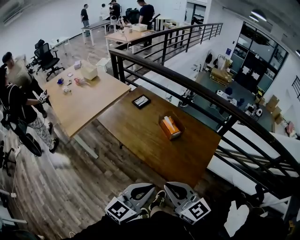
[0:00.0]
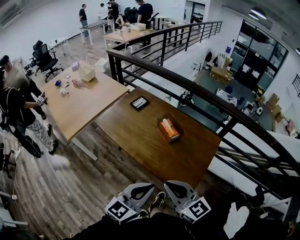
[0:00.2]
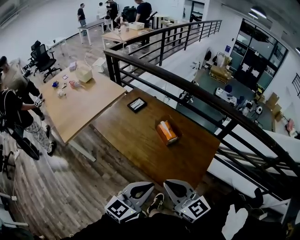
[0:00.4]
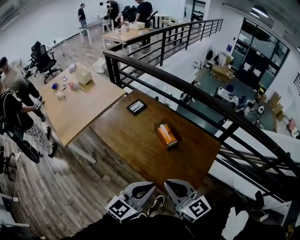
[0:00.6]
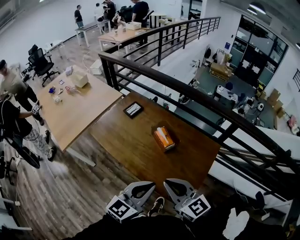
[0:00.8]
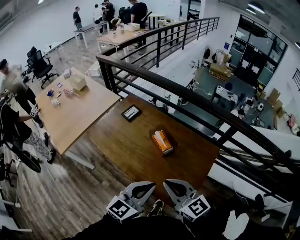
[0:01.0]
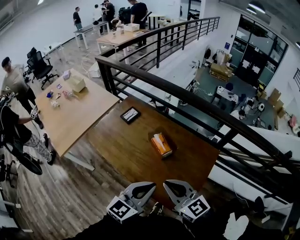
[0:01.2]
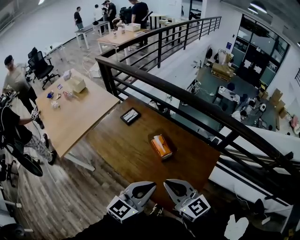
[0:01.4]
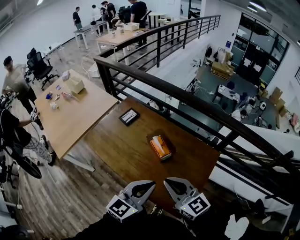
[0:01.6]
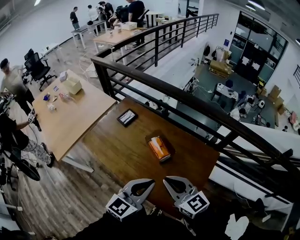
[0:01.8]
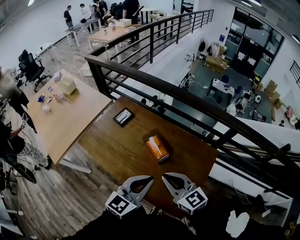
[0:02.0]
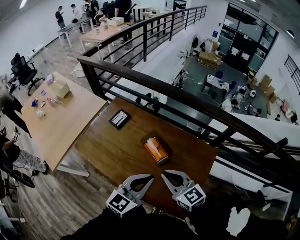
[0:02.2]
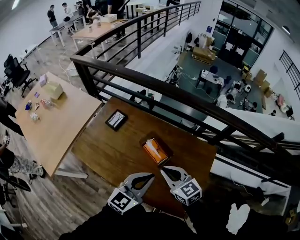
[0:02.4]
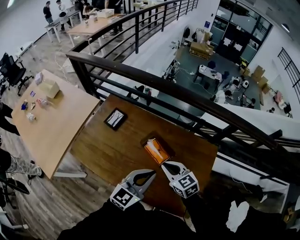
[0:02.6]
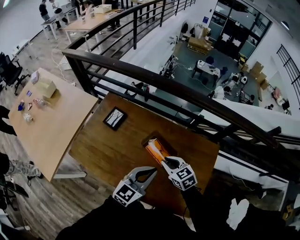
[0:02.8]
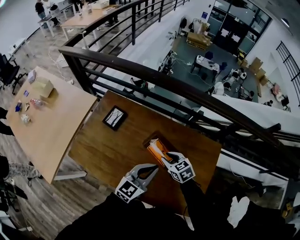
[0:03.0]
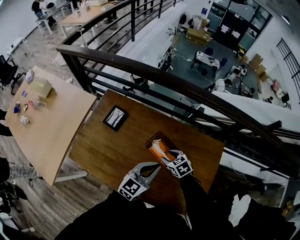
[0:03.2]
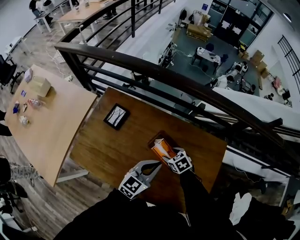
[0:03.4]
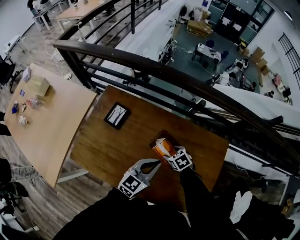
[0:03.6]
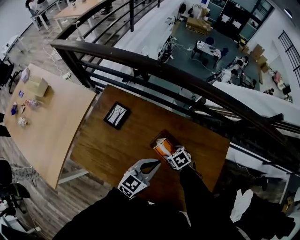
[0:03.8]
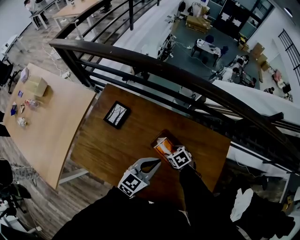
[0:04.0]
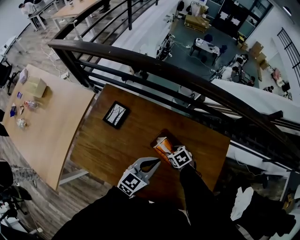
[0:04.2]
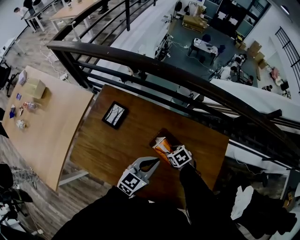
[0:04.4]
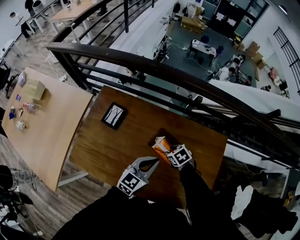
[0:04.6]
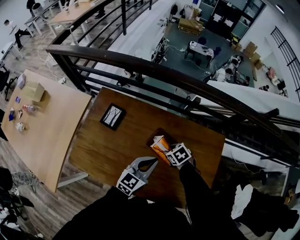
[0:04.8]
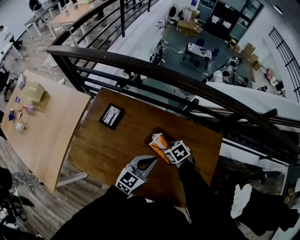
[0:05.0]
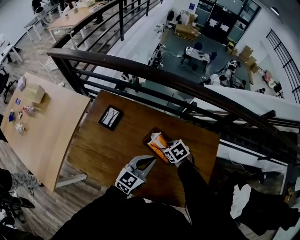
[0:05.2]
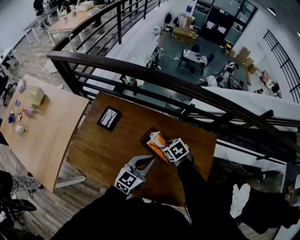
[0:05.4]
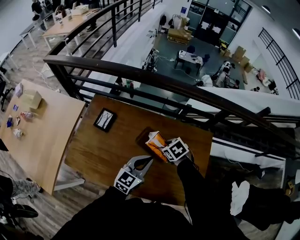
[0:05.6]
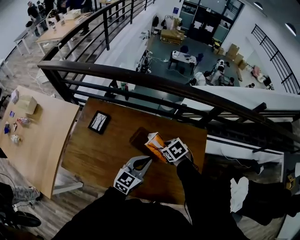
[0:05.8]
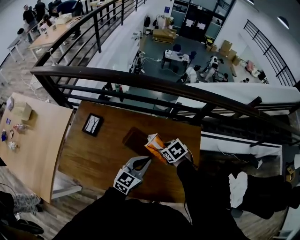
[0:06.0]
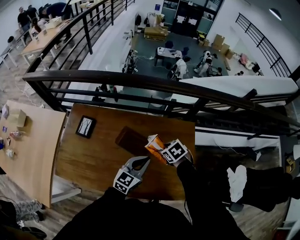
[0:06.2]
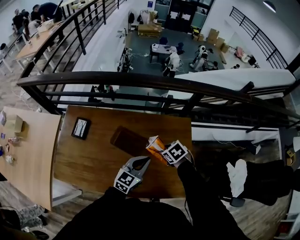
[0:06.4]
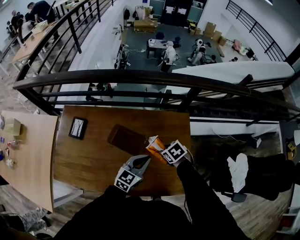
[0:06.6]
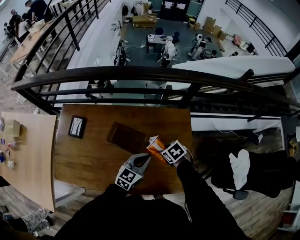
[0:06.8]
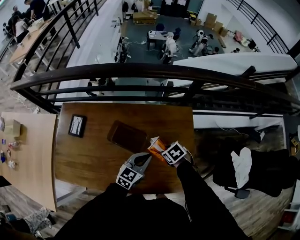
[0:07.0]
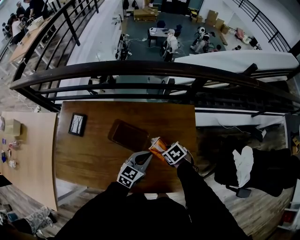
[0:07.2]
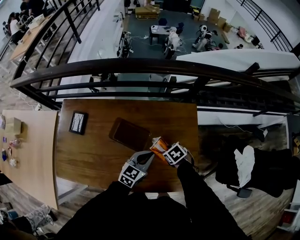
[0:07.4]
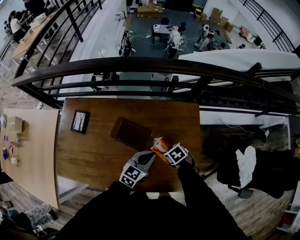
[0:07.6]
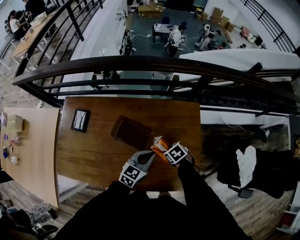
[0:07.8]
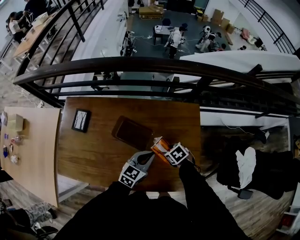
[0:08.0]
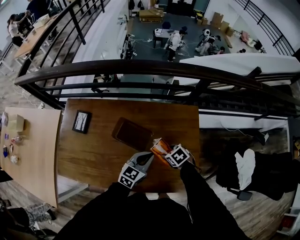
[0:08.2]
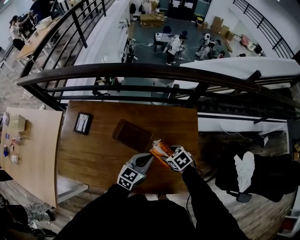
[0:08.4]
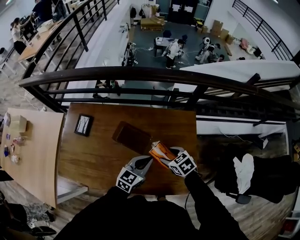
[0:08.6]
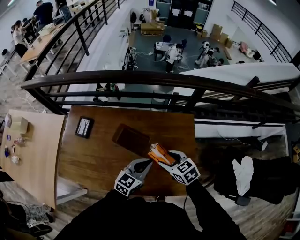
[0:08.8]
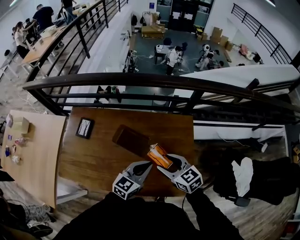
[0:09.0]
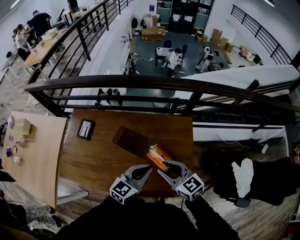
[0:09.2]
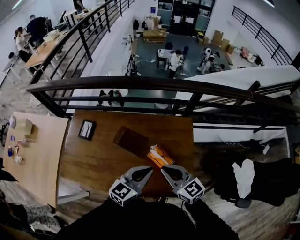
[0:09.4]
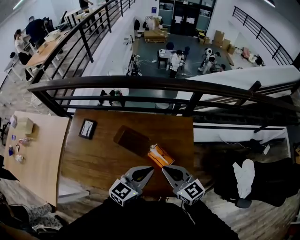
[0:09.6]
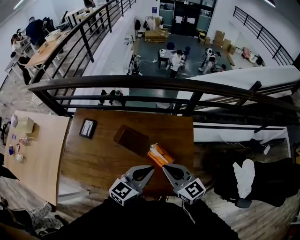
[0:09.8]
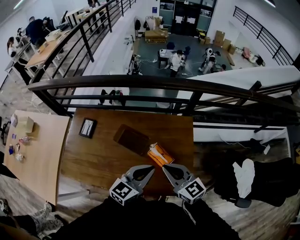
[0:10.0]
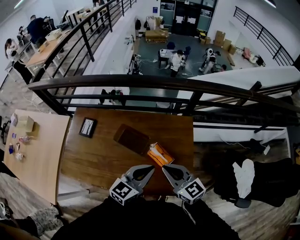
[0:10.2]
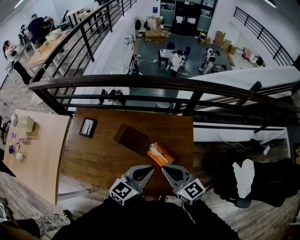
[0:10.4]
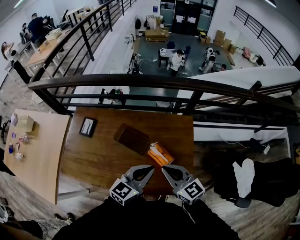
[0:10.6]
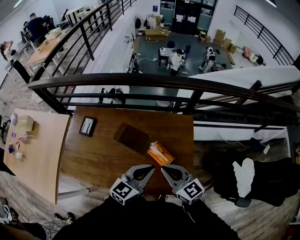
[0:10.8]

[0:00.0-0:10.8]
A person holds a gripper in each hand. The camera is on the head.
0:00.0 to 0:01.6: Both grippers travel together forward, about 25 cm.
0:01.6 to 0:03.0: The right gripper travels downward and forward by about 35 cm, angles its fingers downward, by roughly 40 degrees, and opens up, while the left gripper shifts roughly 25 cm forward and downward.
0:03.0 to 0:04.6: The left gripper moves downward and forward, about 10 cm; the right gripper goes some 10 cm downward, swivels roughly 20 degrees, and opens and closes again.
0:04.6 to 0:06.2: The right gripper is displaced to the right, upward and backward by approximately 20 cm; the left gripper heads to the right and backward, covering approximately 15 cm.
0:06.2 to 0:07.8: The two grippers go some 10 cm downward.
0:07.8 to 0:09.2: The left gripper shifts roughly 15 cm upward and backward. Meanwhile the right gripper shifts approximately 25 cm upward, points its fingers roughly 50 degrees further upward, and opens, then closes once more.
0:09.2 to 0:10.8: The right gripper closes its fingers.

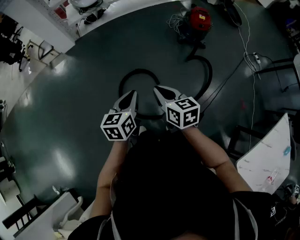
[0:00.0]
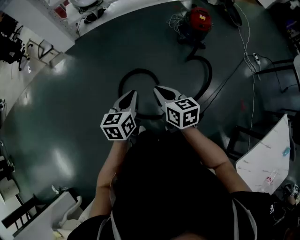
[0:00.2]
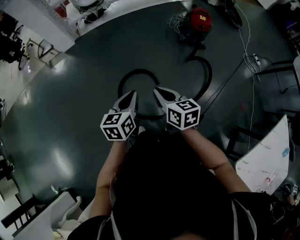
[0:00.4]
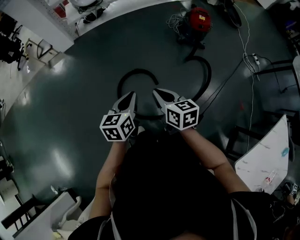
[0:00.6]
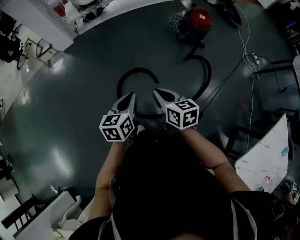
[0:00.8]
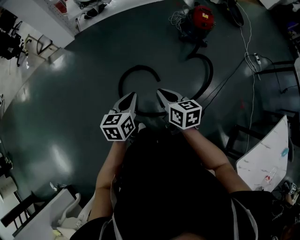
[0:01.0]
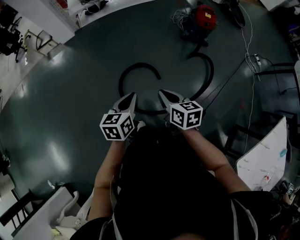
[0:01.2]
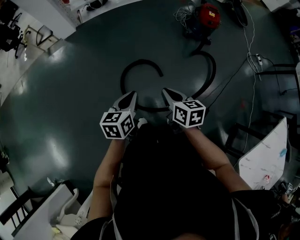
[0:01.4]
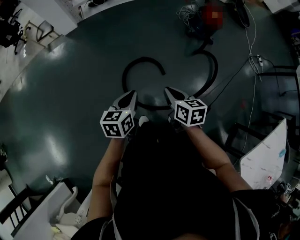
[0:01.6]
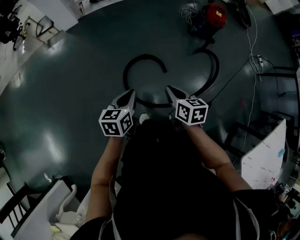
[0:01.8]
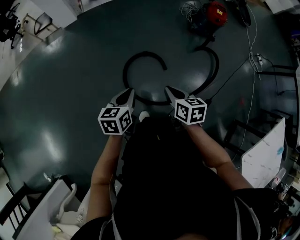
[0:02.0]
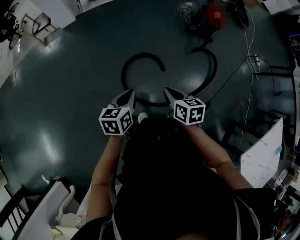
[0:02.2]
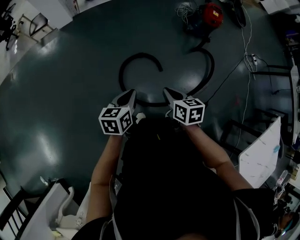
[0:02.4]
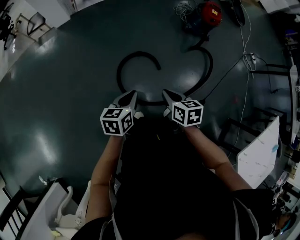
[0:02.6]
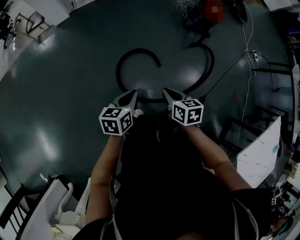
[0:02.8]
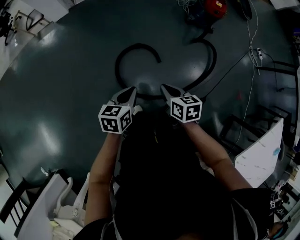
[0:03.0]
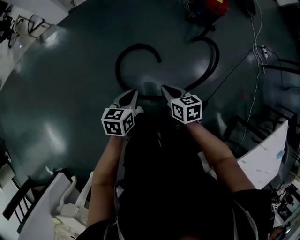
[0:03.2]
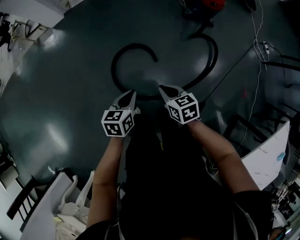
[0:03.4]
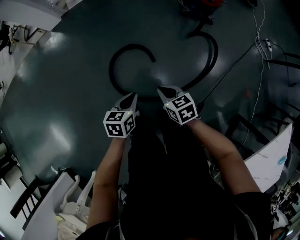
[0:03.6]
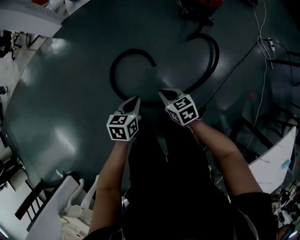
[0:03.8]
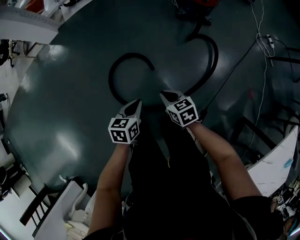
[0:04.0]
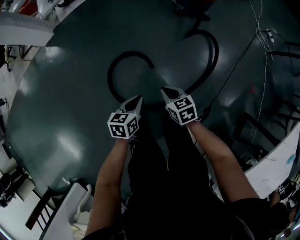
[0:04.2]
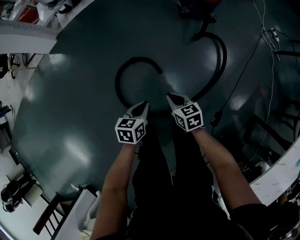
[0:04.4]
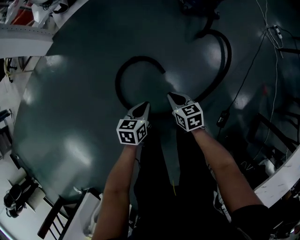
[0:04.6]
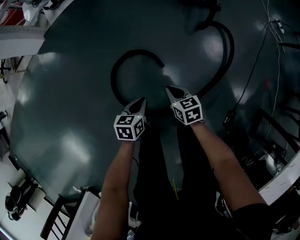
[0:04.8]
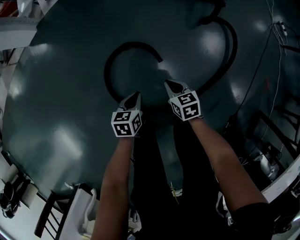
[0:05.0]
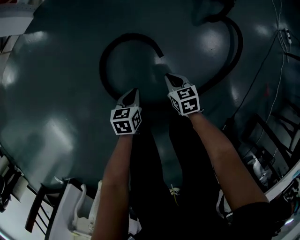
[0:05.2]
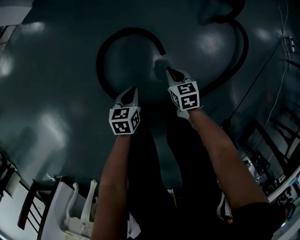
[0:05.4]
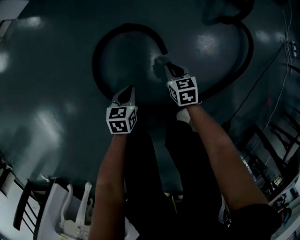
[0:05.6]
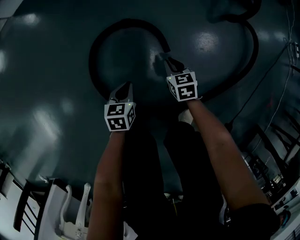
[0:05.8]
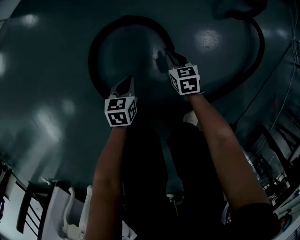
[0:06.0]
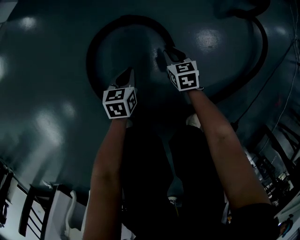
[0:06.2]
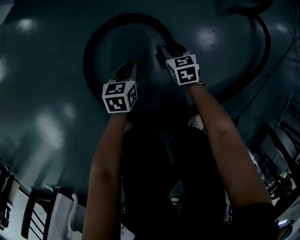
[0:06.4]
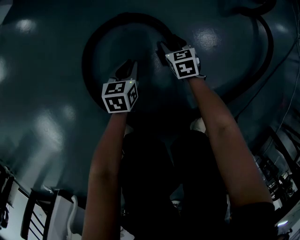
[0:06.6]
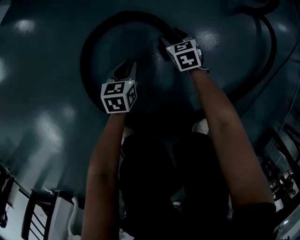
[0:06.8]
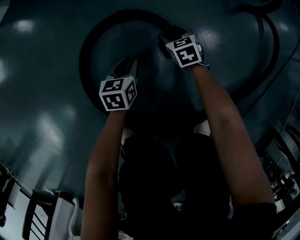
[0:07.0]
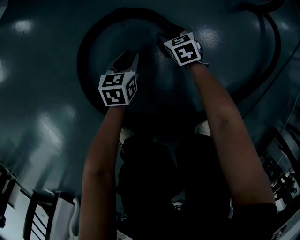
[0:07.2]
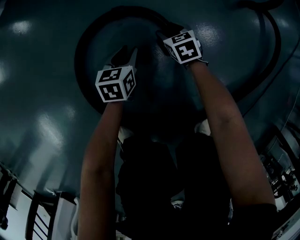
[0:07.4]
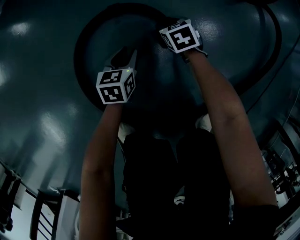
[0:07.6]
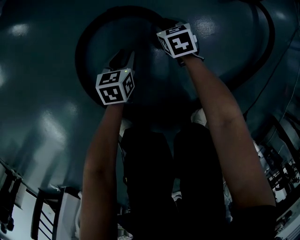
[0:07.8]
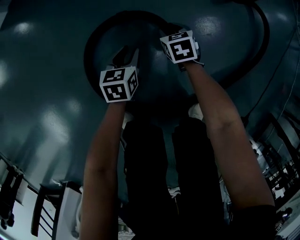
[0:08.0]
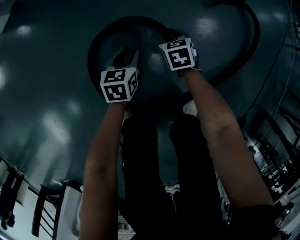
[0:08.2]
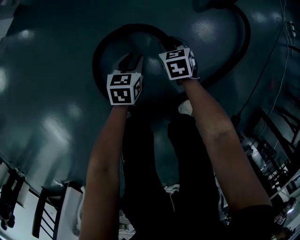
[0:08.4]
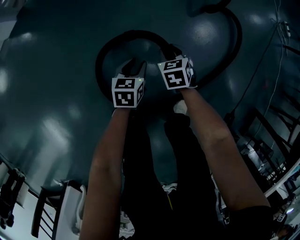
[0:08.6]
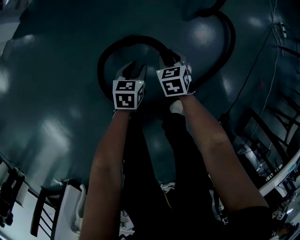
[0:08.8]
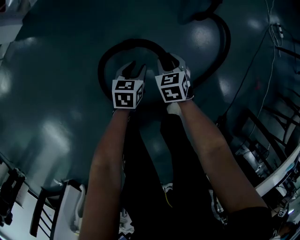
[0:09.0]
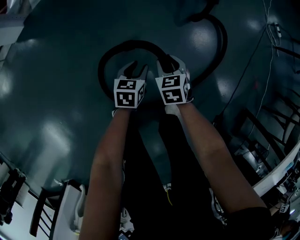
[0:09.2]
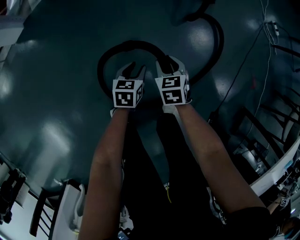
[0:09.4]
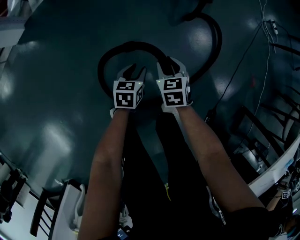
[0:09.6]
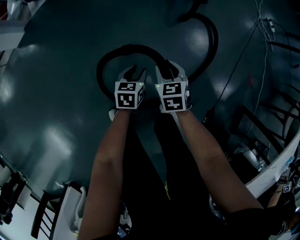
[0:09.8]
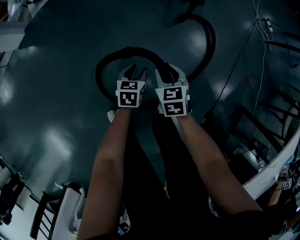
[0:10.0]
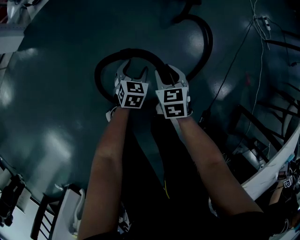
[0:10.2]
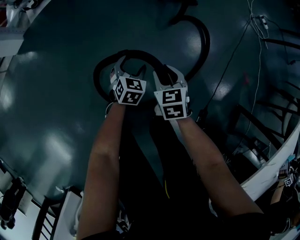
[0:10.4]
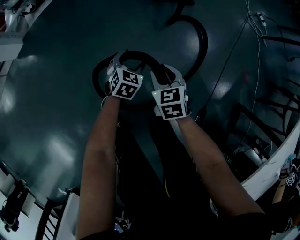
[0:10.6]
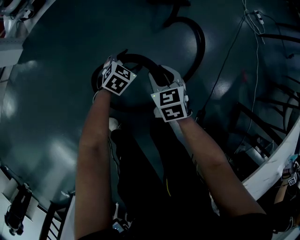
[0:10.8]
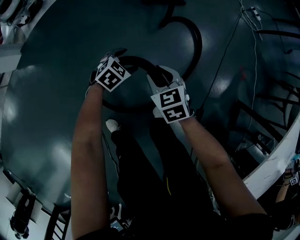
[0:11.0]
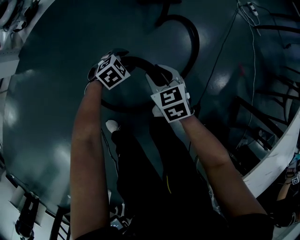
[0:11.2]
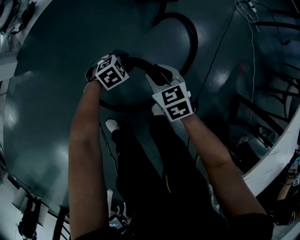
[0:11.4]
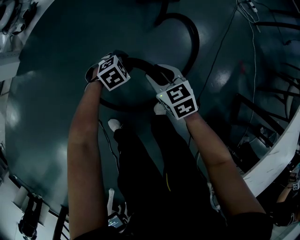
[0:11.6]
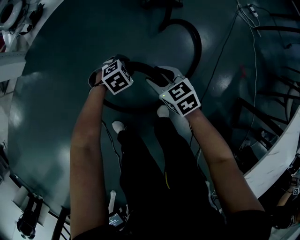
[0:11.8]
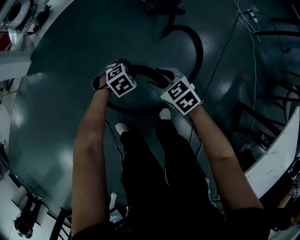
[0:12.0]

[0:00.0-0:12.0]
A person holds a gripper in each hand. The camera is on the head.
0:00.0 to 0:01.6: The left gripper shifts roughly 10 cm to the left and downward. The right gripper is displaced downward and to the left by about 10 cm.
0:01.6 to 0:03.0: The two grippers go approximately 5 cm downward.
0:03.0 to 0:04.4: The left gripper is displaced to the right, downward and forward by approximately 25 cm, while the right gripper is displaced downward, to the right and forward by approximately 25 cm.
0:04.4 to 0:06.0: The grippers both shift downward by some 40 cm.
0:06.0 to 0:07.6: Both grippers move downward and forward, some 15 cm. The left gripper opens.
0:07.6 to 0:09.0: Both grippers travel together upward, approximately 35 cm.
0:09.0 to 0:10.4: The right gripper goes some 15 cm upward and to the right. The left gripper shifts about 15 cm to the right and upward, swivels some 30 degrees, and opens up.
0:10.4 to 0:12.0: The two grippers go some 10 cm upward. The right gripper swivels about 20 degrees, while the left gripper turns by roughly 50 degrees, and closes its fingers.

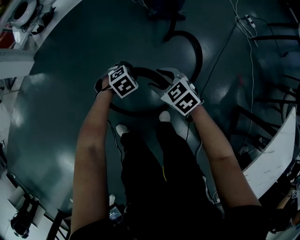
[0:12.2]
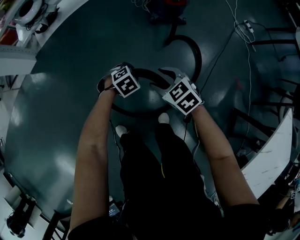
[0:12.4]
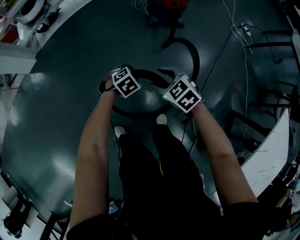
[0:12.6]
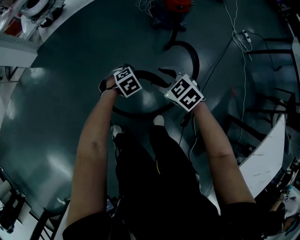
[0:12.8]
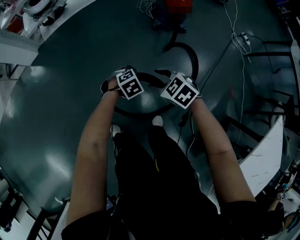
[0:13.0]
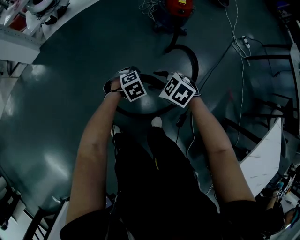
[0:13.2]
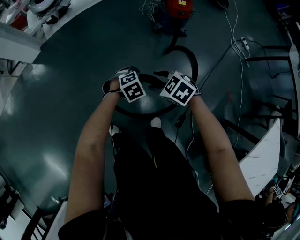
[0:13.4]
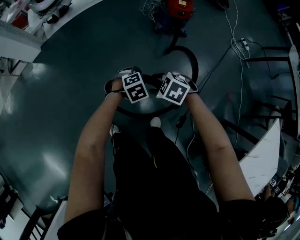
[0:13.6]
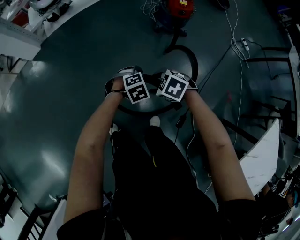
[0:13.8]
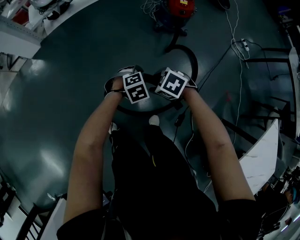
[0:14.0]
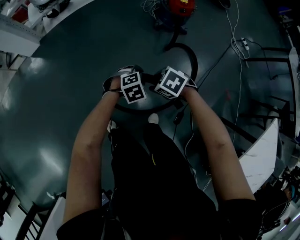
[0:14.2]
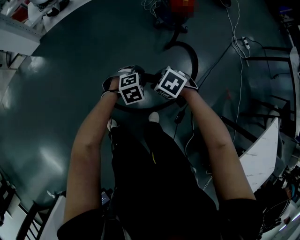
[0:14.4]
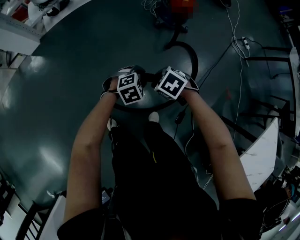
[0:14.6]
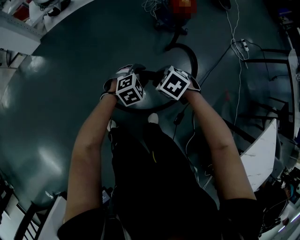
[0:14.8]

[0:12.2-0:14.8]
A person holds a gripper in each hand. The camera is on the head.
0:12.2 to 0:13.4: The two grippers go about 5 cm upward.
0:13.4 to 0:14.8: The grippers move only a little.
